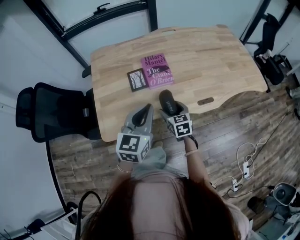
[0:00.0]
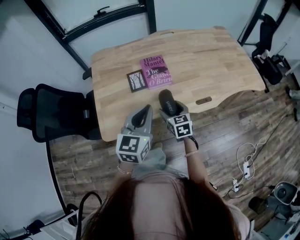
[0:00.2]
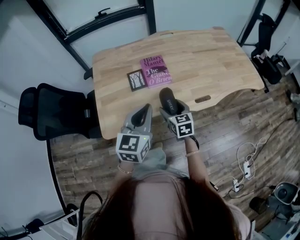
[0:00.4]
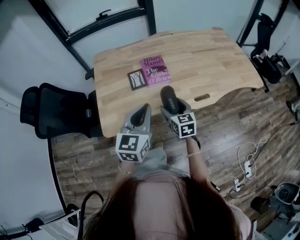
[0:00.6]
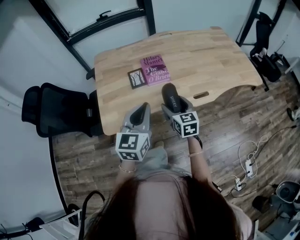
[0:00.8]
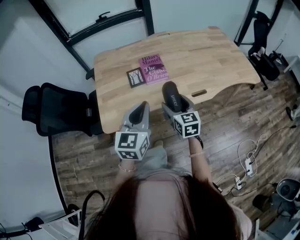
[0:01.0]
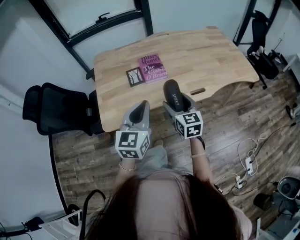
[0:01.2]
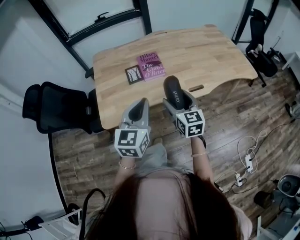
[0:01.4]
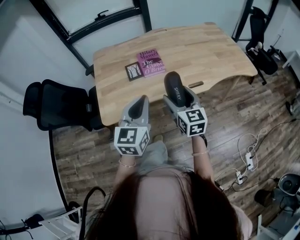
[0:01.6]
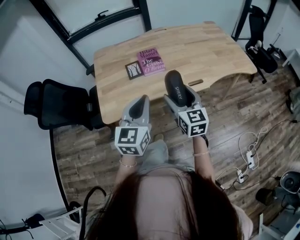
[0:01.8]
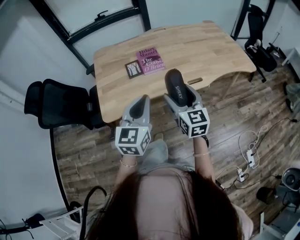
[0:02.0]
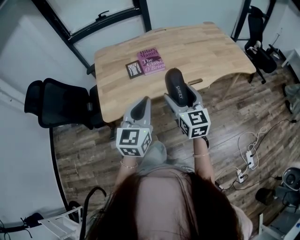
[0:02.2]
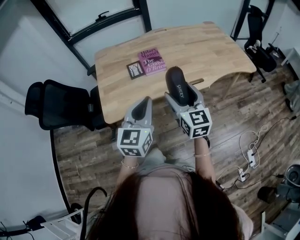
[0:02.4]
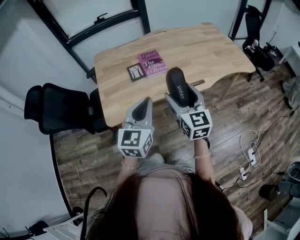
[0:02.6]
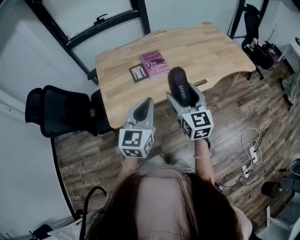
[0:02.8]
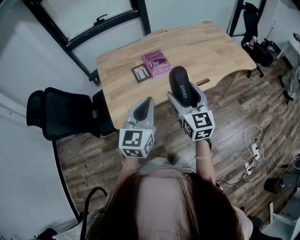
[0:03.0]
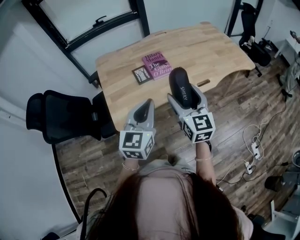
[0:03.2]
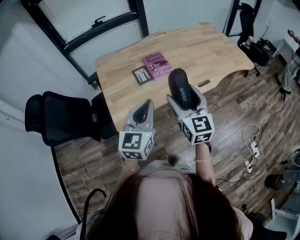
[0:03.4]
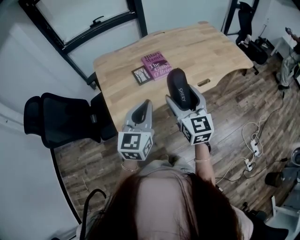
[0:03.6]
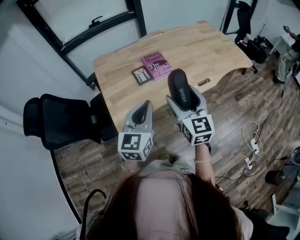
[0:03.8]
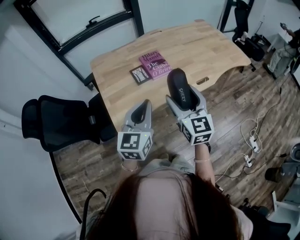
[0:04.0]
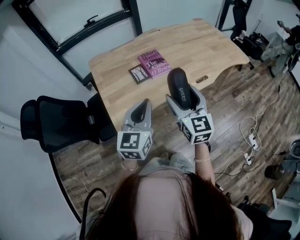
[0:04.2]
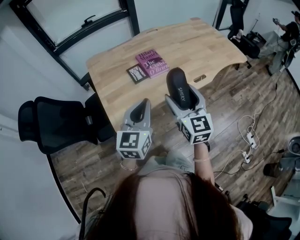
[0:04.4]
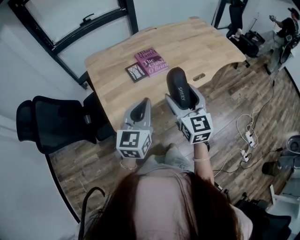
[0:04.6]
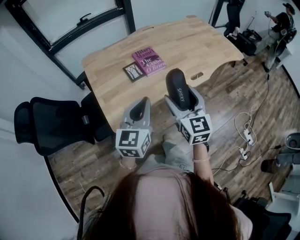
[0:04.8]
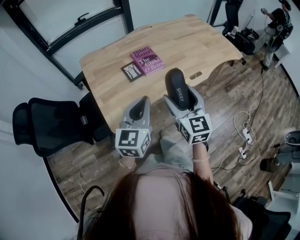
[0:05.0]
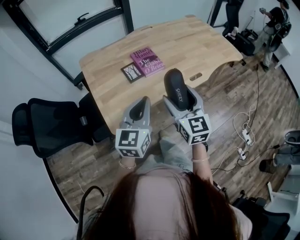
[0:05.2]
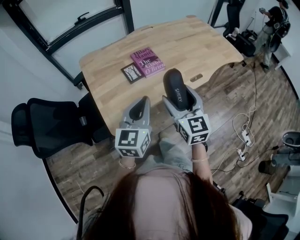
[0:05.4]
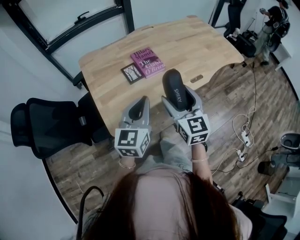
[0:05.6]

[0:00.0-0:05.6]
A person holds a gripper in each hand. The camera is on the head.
0:00.0 to 0:01.4: The left gripper shifts roughly 10 cm backward. Meanwhile the right gripper moves upward and backward, some 20 cm, and swivels roughly 20 degrees.
0:01.4 to 0:02.8: The left gripper changes place by some 5 cm. The right gripper is displaced upward by approximately 10 cm.
0:02.8 to 0:04.2: Both grippers move to the left, roughly 10 cm.
0:04.2 to 0:05.6: The grippers stay close to where they were, moving slightly.

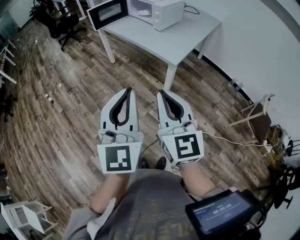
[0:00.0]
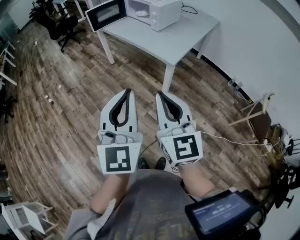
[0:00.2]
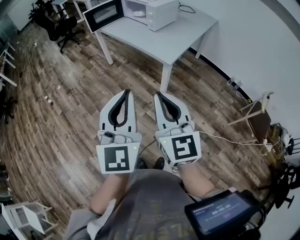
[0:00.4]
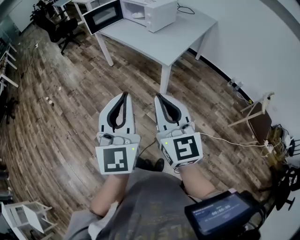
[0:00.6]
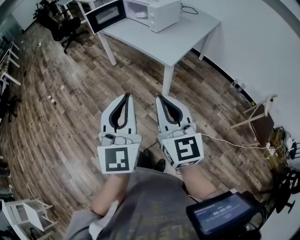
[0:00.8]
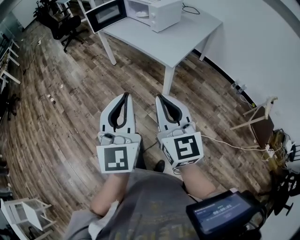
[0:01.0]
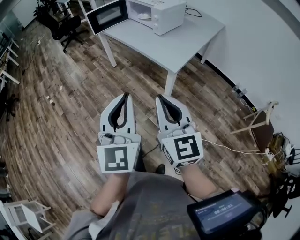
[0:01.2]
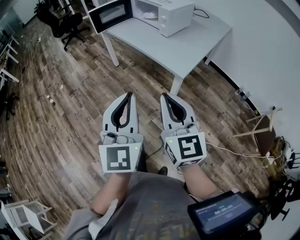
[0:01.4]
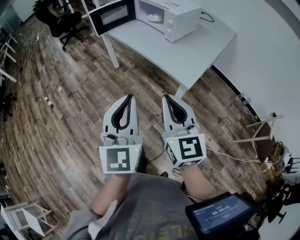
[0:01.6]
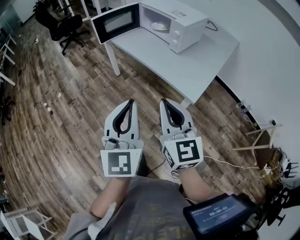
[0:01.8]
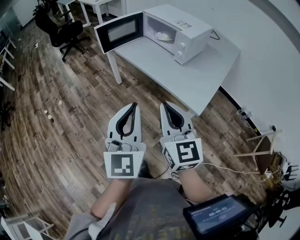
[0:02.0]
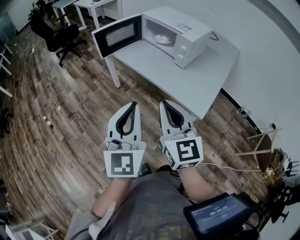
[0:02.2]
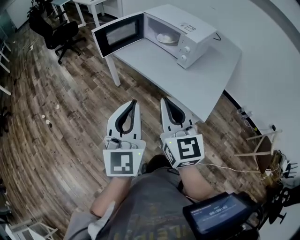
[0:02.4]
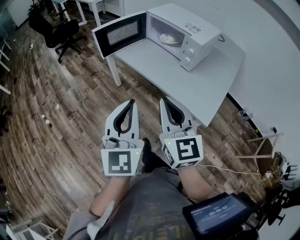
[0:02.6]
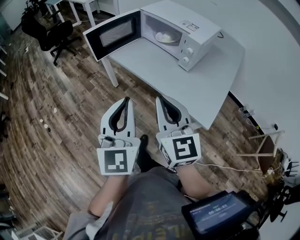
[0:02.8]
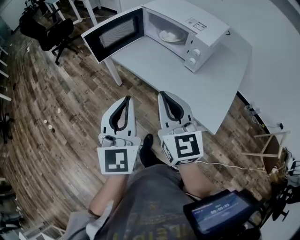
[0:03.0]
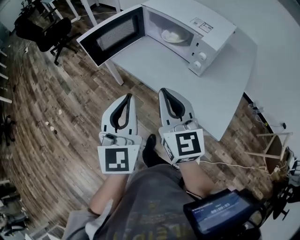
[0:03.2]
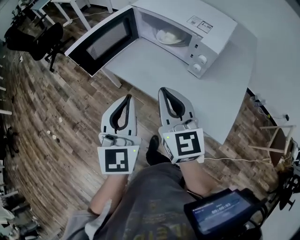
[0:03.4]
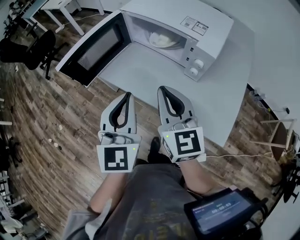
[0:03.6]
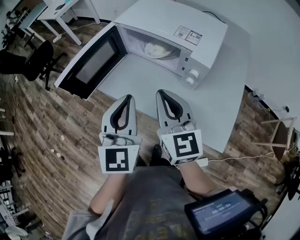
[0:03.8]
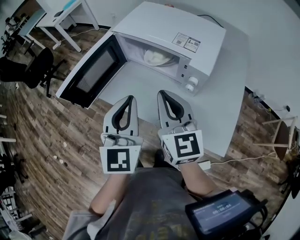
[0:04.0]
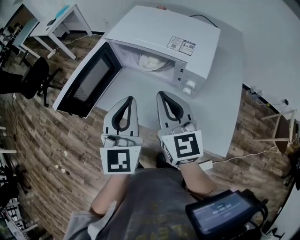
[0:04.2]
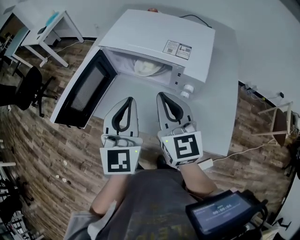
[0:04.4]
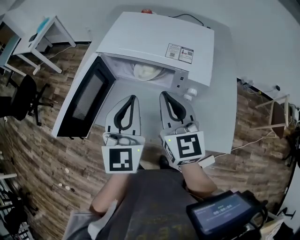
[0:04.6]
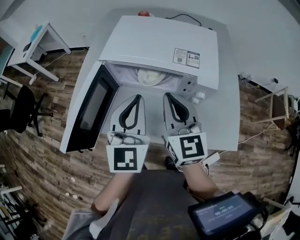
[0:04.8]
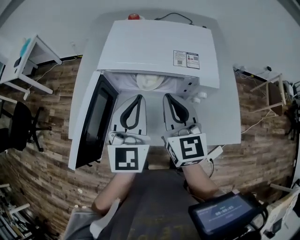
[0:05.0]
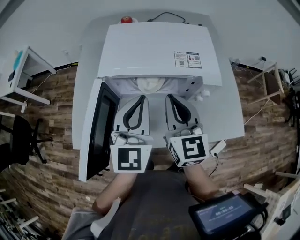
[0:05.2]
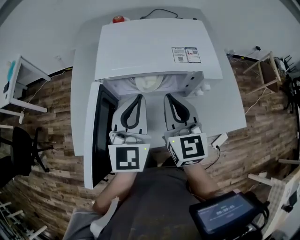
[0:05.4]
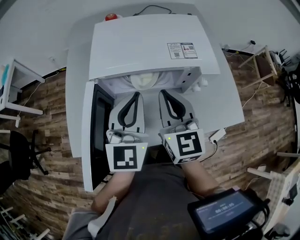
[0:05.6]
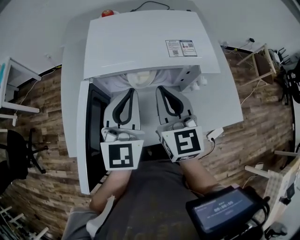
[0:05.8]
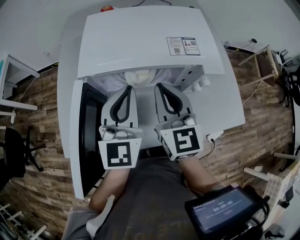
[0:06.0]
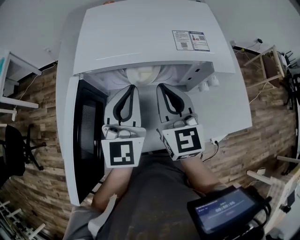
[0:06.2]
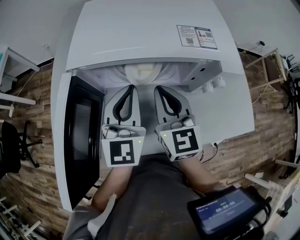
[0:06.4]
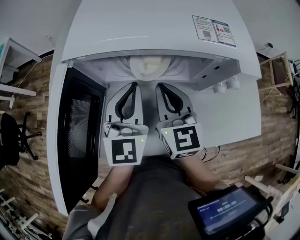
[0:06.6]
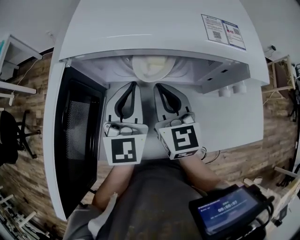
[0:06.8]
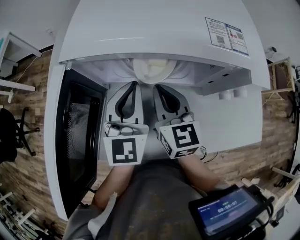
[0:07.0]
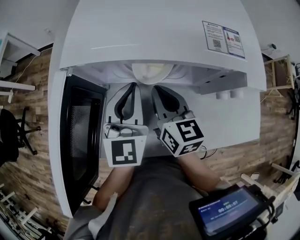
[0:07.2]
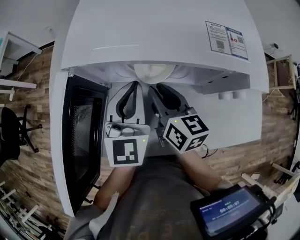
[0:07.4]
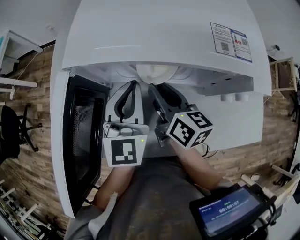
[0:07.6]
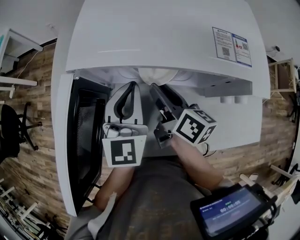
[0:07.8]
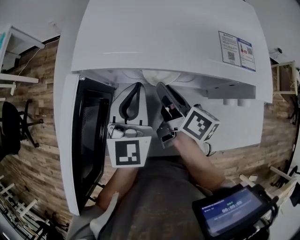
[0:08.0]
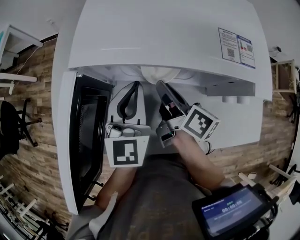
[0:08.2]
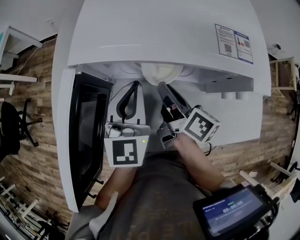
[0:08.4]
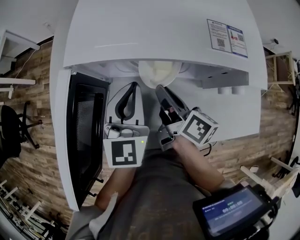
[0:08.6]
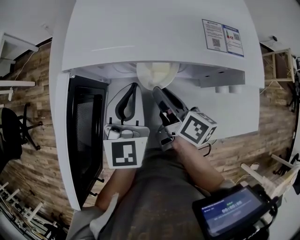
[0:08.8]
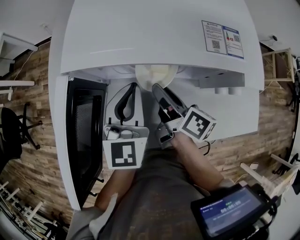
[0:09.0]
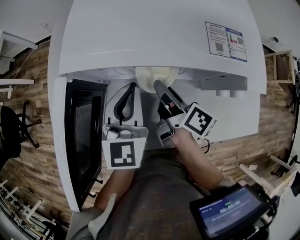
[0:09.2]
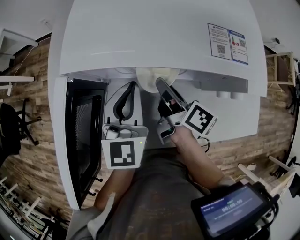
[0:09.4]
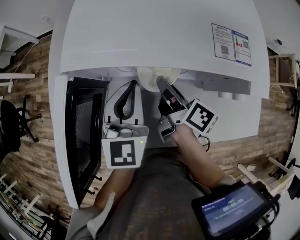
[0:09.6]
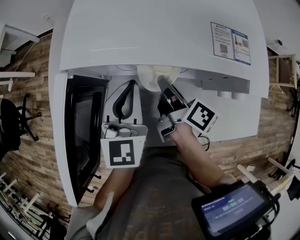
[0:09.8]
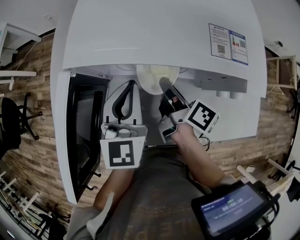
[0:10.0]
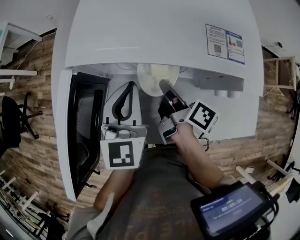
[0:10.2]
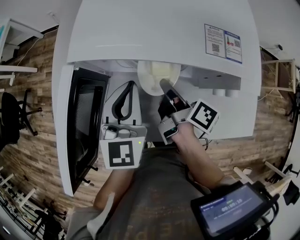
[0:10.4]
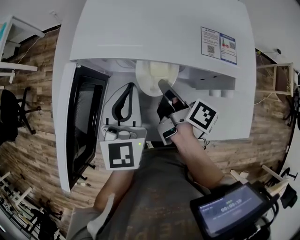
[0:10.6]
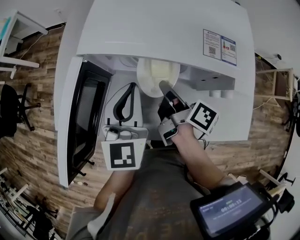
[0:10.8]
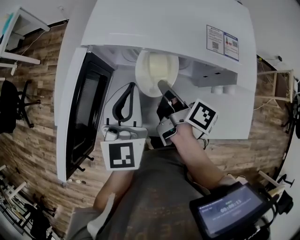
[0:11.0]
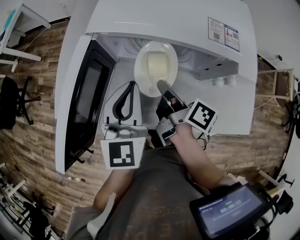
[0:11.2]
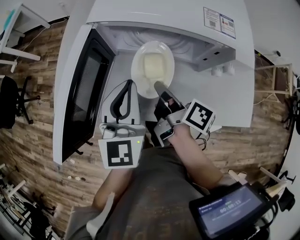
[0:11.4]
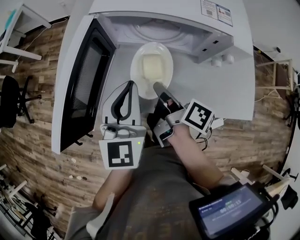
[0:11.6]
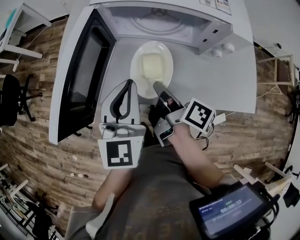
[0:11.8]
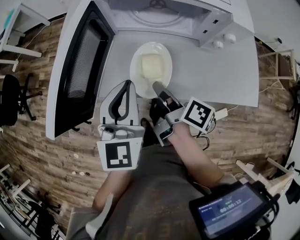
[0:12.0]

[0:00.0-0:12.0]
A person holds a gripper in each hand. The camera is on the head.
0:00.0 to 0:01.6: The grippers both shift forward by some 15 cm.
0:01.6 to 0:03.0: The grippers both shift forward by about 30 cm.
0:03.0 to 0:04.4: The grippers both shift forward by approximately 25 cm. The left gripper turns by about 20 degrees.
0:04.4 to 0:06.0: The left gripper ends up approximately 15 cm from where it was, and changes its angle by approximately 30 degrees, while the right gripper changes place by some 10 cm, and changes its angle by roughly 30 degrees.
0:06.0 to 0:07.6: The two grippers go approximately 15 cm downward. The right gripper turns by approximately 40 degrees, and opens.
0:07.6 to 0:09.0: The right gripper turns by some 30 degrees.
0:09.0 to 0:10.4: The right gripper closes.
0:10.4 to 0:12.0: The right gripper moves backward and to the left, about 15 cm, while the left gripper travels backward by about 15 cm.

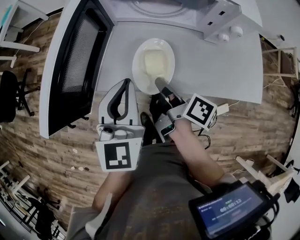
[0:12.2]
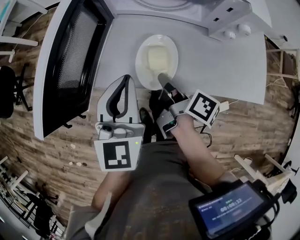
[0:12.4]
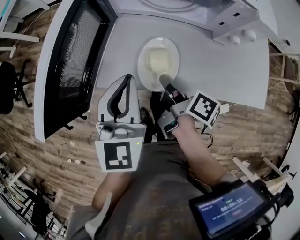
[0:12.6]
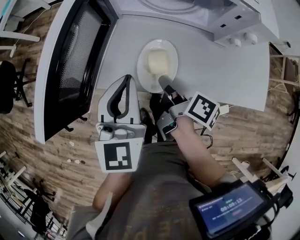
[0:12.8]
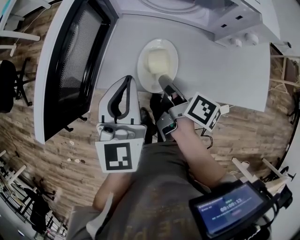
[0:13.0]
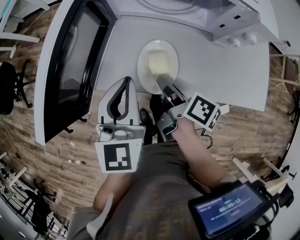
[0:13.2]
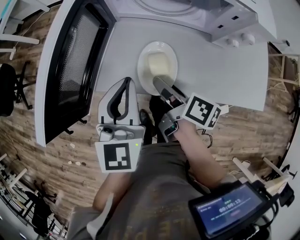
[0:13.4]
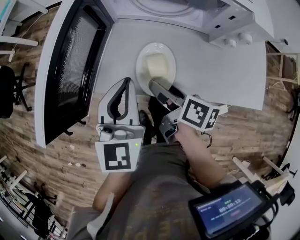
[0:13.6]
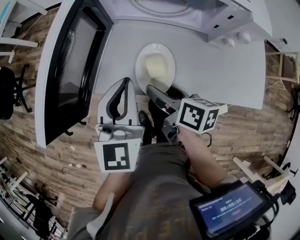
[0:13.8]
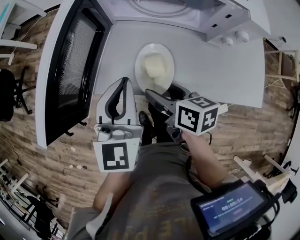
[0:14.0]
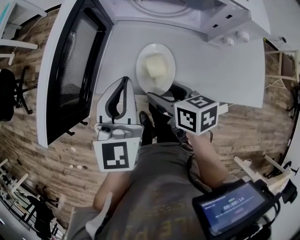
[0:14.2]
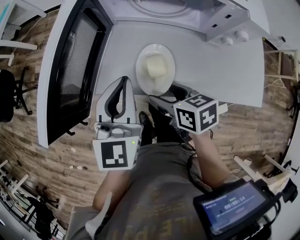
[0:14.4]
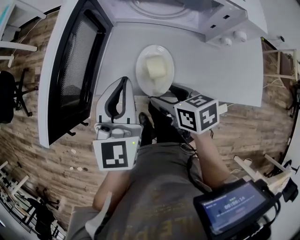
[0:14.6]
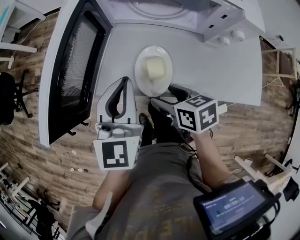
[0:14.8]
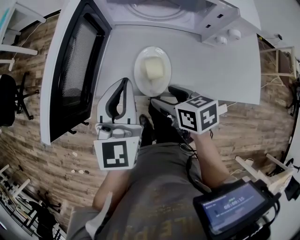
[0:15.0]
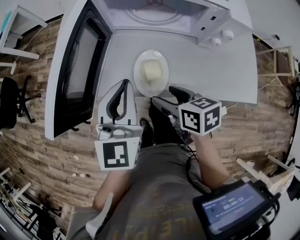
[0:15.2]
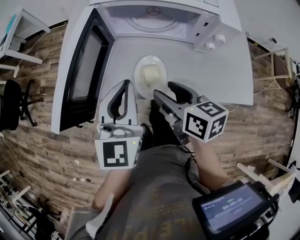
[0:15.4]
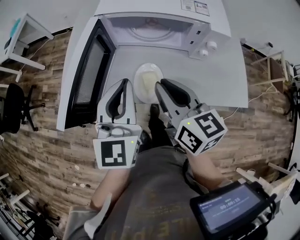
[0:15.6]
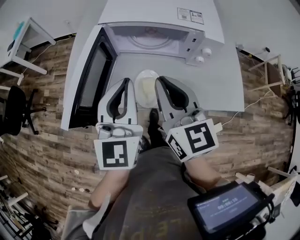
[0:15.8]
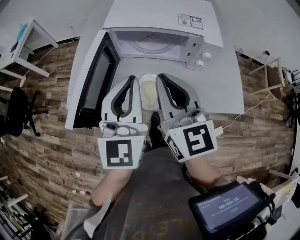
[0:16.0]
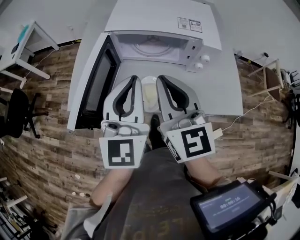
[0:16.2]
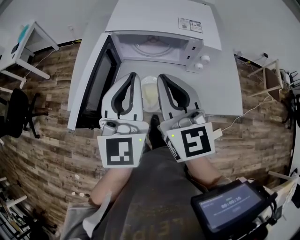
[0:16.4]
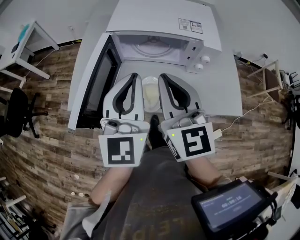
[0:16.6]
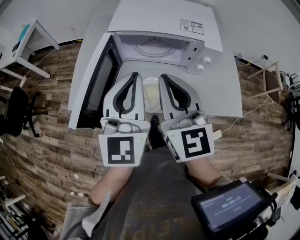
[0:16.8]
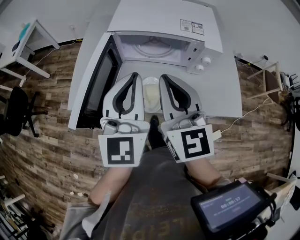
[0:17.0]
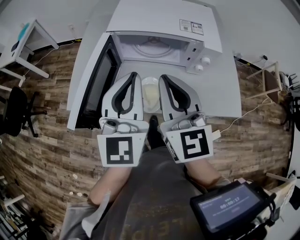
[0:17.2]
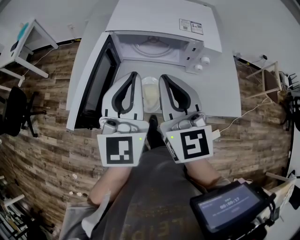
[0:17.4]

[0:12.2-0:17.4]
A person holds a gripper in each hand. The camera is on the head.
0:12.2 to 0:14.0: The right gripper changes its angle by about 40 degrees, and opens its fingers.
0:14.0 to 0:15.6: The left gripper travels upward by about 10 cm. Meanwhile the right gripper is displaced upward by about 20 cm, turns by some 30 degrees, and closes its fingers.
0:15.6 to 0:17.4: Both grippers move upward, approximately 10 cm. The right gripper turns by approximately 30 degrees.

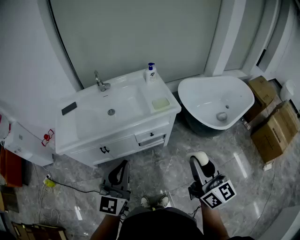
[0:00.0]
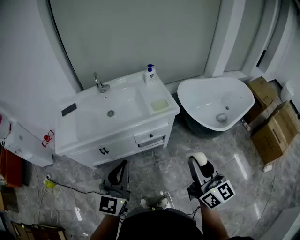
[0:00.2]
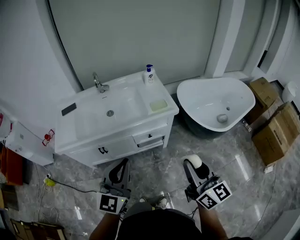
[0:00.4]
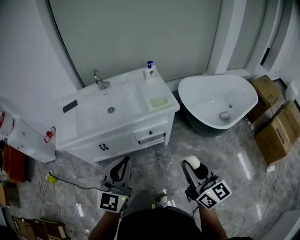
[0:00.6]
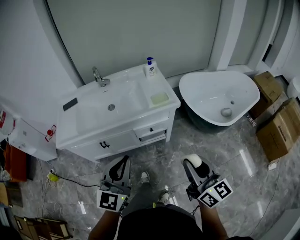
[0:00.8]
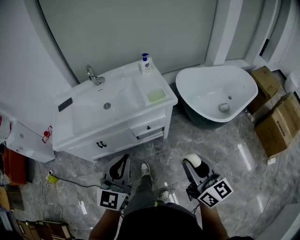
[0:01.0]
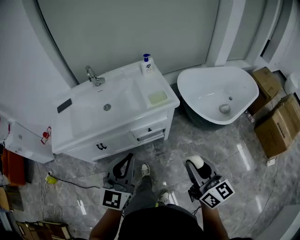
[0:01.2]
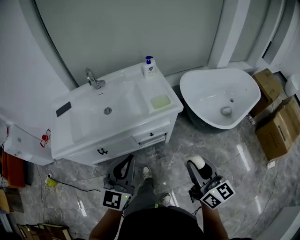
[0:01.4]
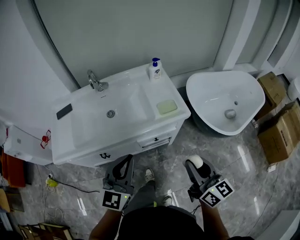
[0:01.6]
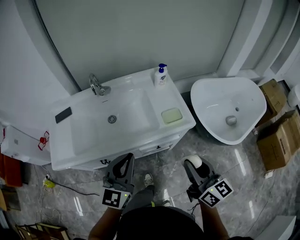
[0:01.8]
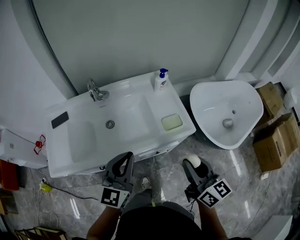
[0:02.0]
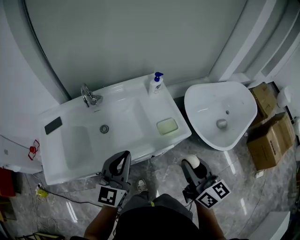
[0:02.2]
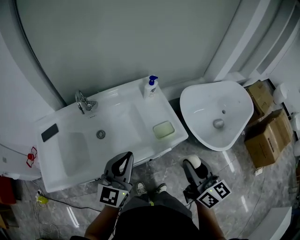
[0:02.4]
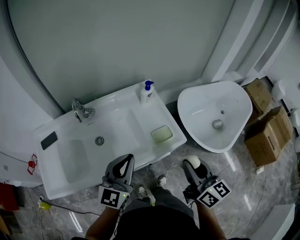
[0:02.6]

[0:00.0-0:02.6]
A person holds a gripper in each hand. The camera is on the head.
0:00.0 to 0:01.2: The left gripper moves to the right, some 5 cm, while the right gripper goes some 10 cm downward.
0:01.2 to 0:02.6: The two grippers go some 30 cm forward.